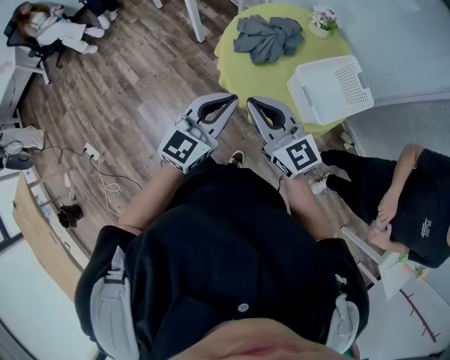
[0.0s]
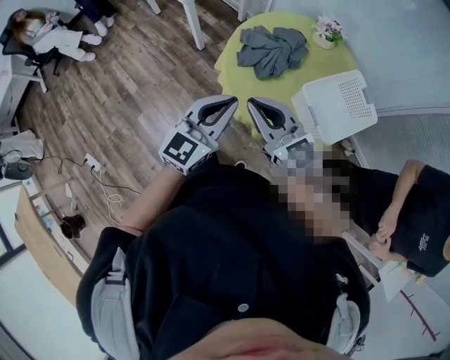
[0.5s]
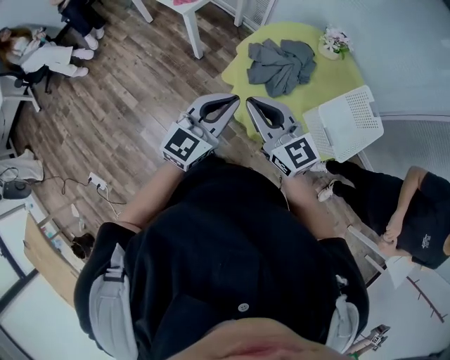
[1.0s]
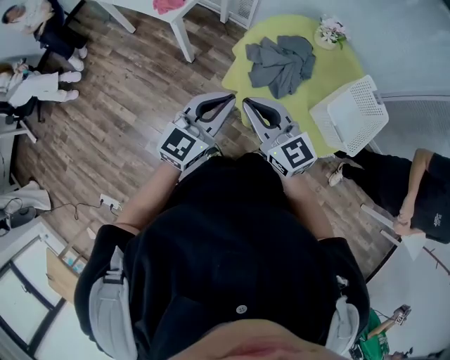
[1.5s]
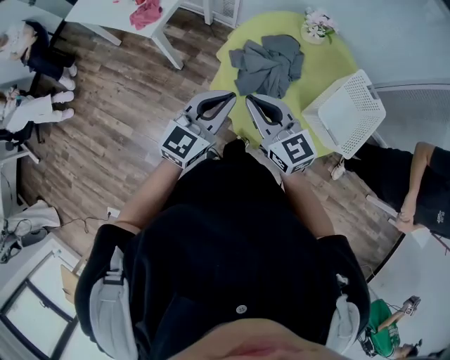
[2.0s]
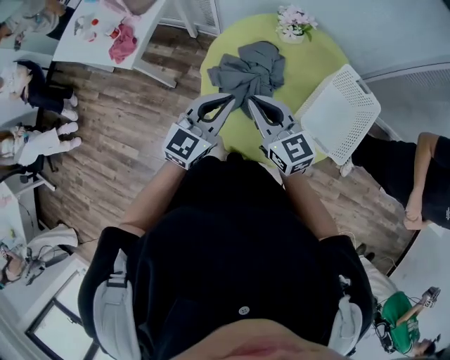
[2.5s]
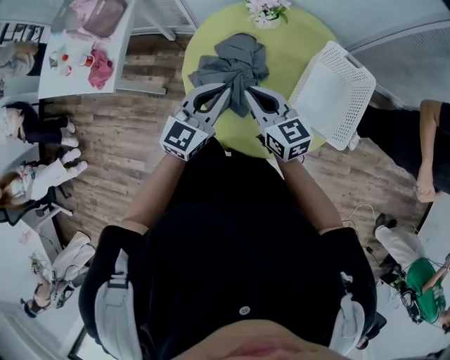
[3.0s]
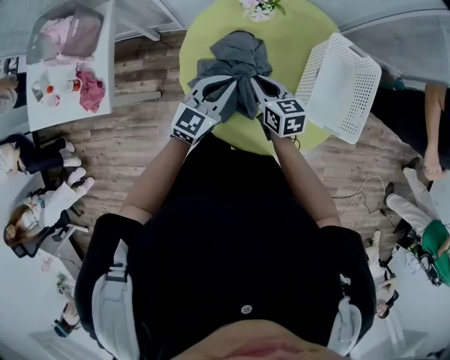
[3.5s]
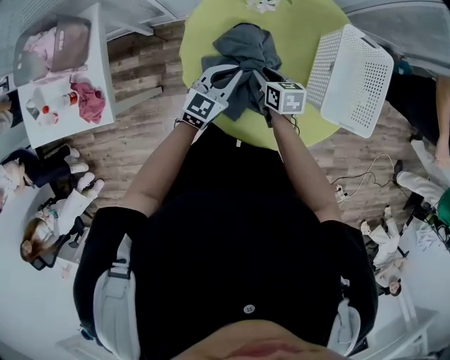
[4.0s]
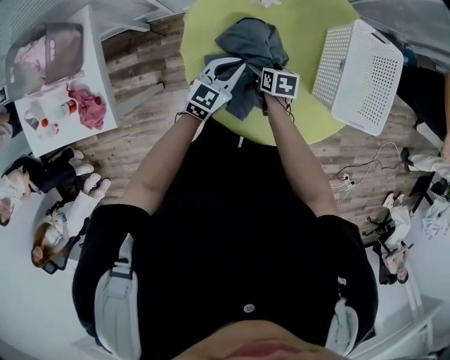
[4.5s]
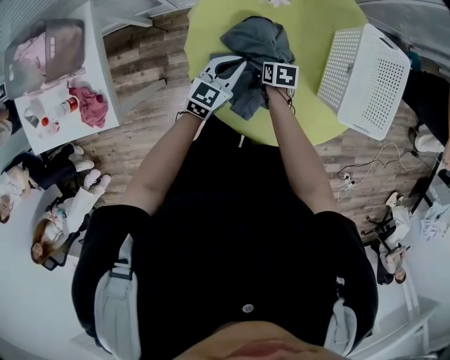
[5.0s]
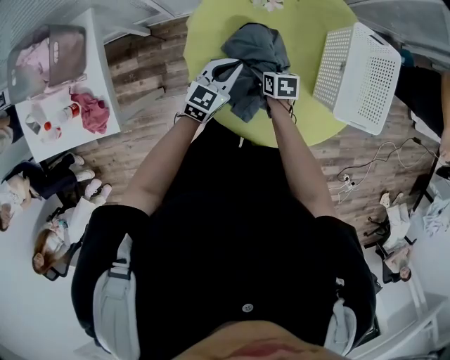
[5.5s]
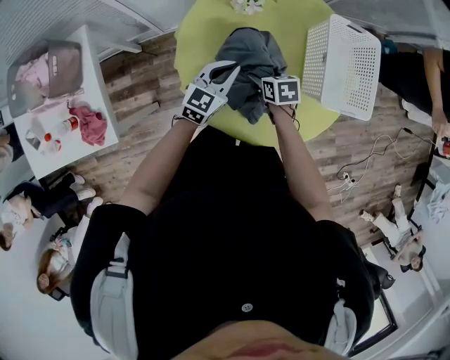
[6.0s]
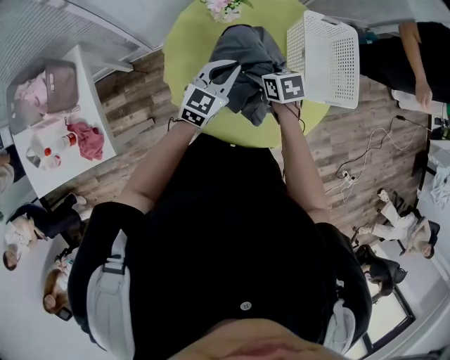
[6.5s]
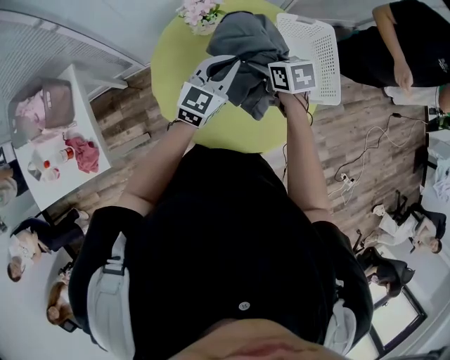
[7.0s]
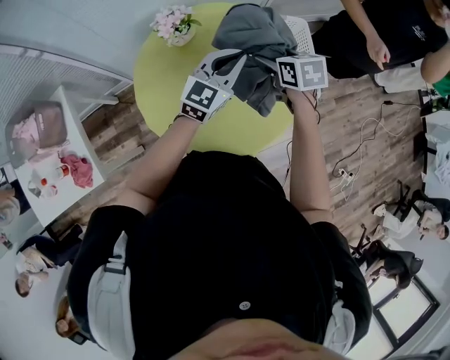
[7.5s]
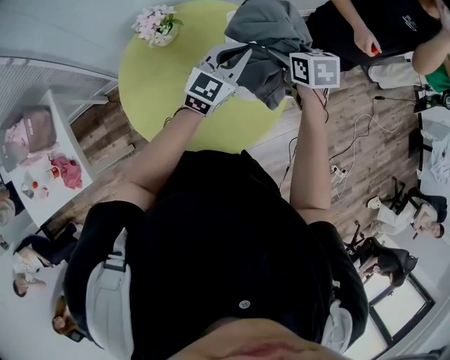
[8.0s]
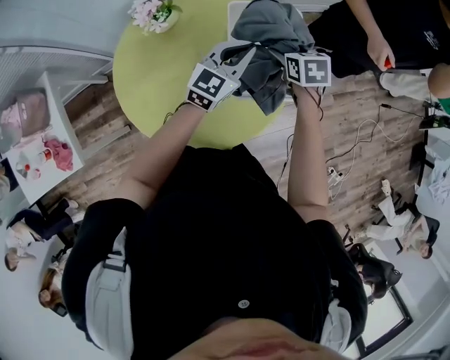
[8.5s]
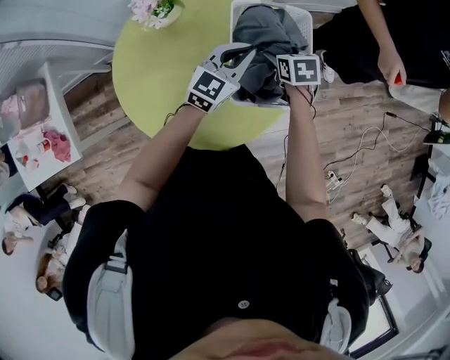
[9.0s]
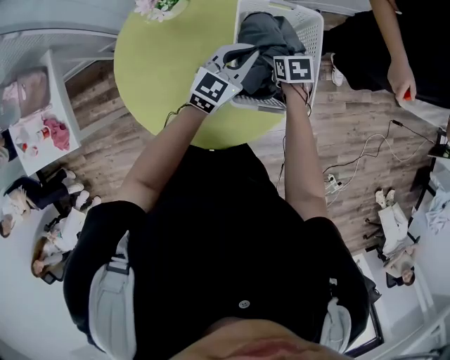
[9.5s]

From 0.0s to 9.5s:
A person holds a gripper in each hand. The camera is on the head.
From 0.0s to 2.0s: The grippers both shift forward and to the left by about 30 cm. The right gripper rotates about 20 degrees. The left gripper changes its angle by approximately 20 degrees.
From 2.0s to 4.0s: The left gripper ends up approximately 35 cm from where it was, and rotates approximately 30 degrees, while the right gripper shifts by some 40 cm, and tips its fingers downward by approximately 40 degrees.
From 4.0s to 5.5s: The right gripper goes roughly 10 cm downward, and opens up. Meanwhile the left gripper ends up approximately 5 cm from where it was.
From 5.5s to 7.5s: The right gripper travels upward and to the right by some 35 cm, while the left gripper travels to the right and upward by about 30 cm, and changes its angle by about 20 degrees.
From 7.5s to 9.5s: The left gripper travels downward, to the right and forward by roughly 20 cm. Meanwhile the right gripper shifts roughly 25 cm downward and to the right.

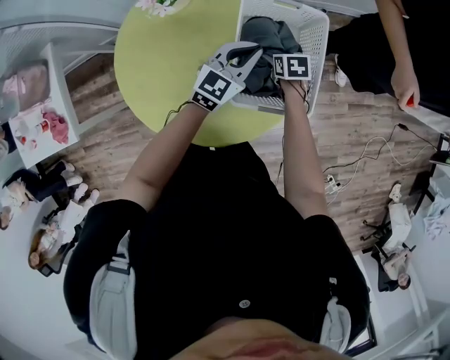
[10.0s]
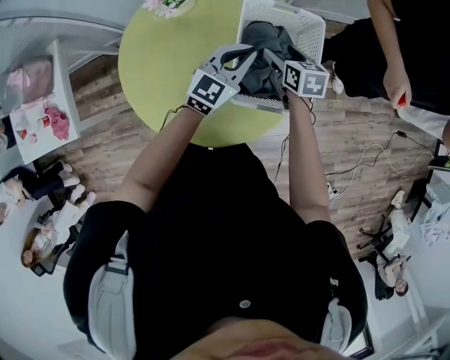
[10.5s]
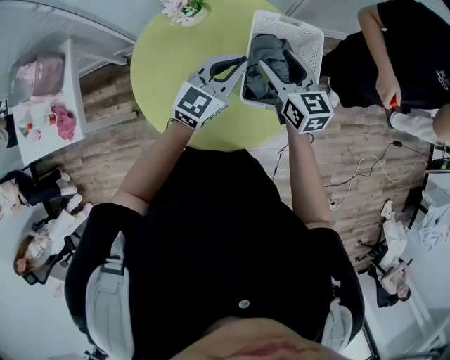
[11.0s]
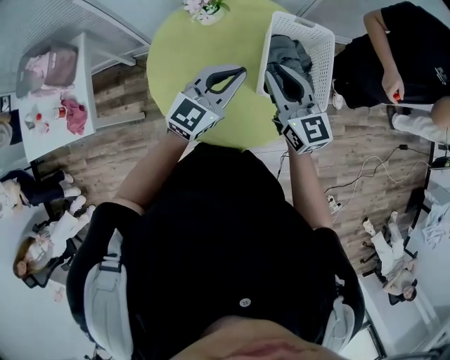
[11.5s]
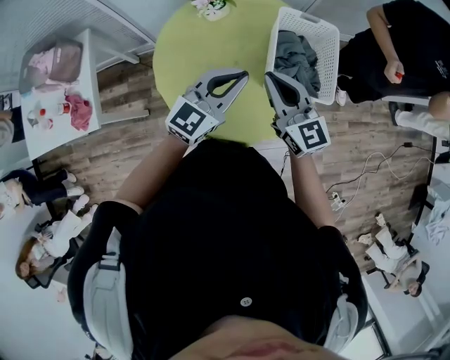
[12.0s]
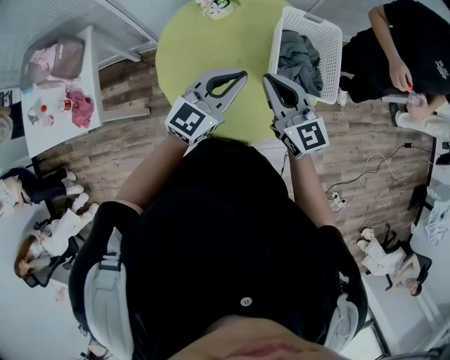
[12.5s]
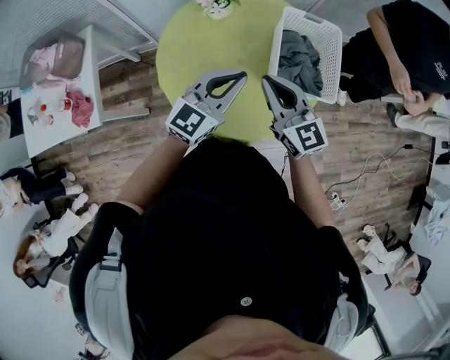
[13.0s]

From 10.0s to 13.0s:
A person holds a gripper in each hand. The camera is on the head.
From 10.0s to 11.5s: The right gripper travels upward, backward and to the left by roughly 40 cm, angles its fingers upward, by roughly 60 degrees, and closes; the left gripper shifts approximately 25 cm upward, backward and to the left.
From 11.5s to 13.0s: The left gripper shifts roughly 5 cm backward, while the right gripper shifts about 10 cm backward and to the left.

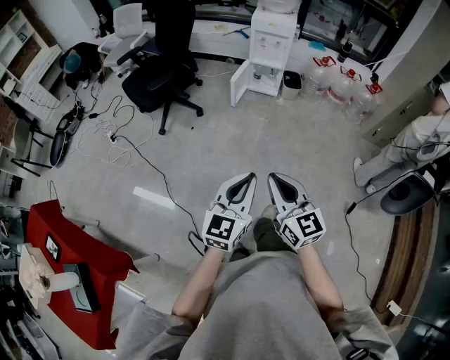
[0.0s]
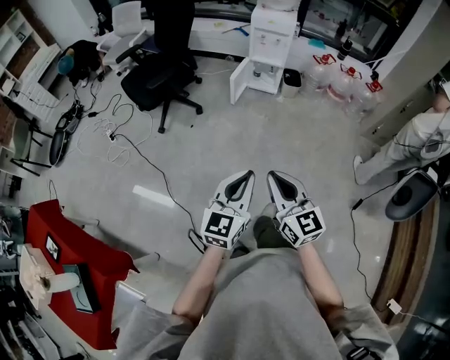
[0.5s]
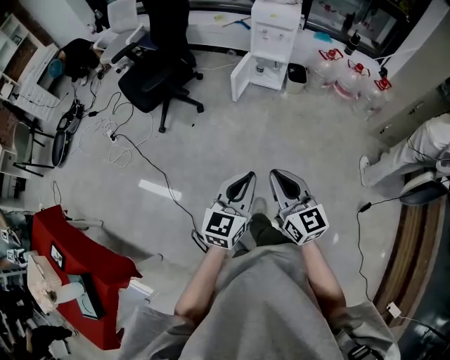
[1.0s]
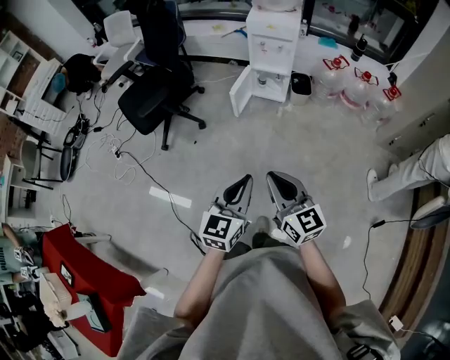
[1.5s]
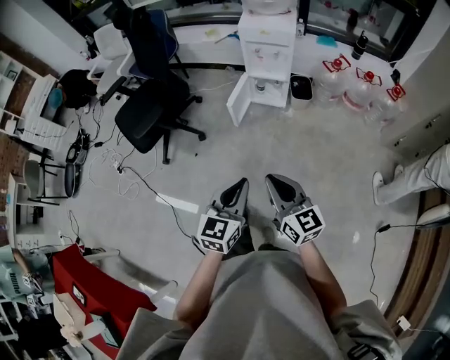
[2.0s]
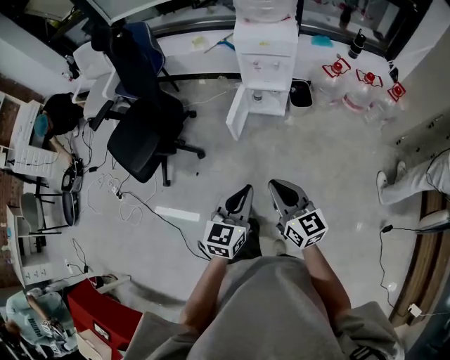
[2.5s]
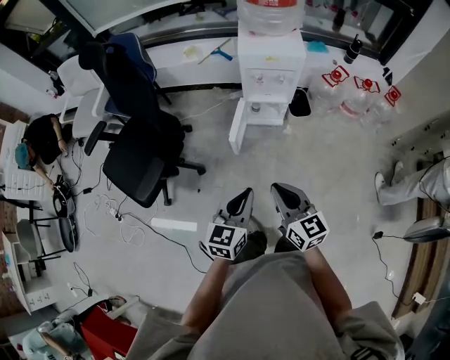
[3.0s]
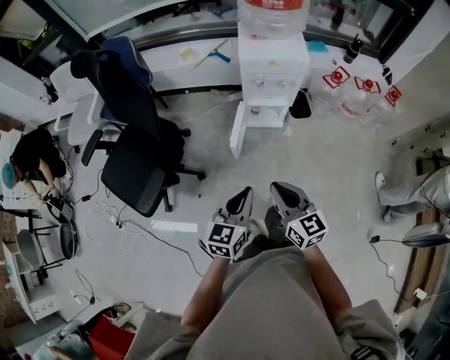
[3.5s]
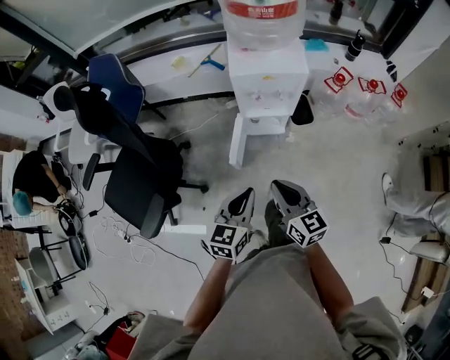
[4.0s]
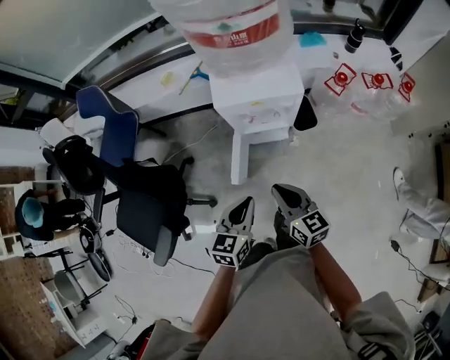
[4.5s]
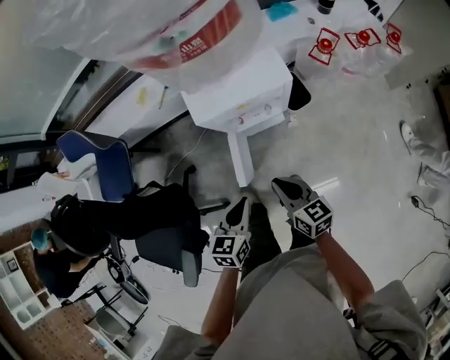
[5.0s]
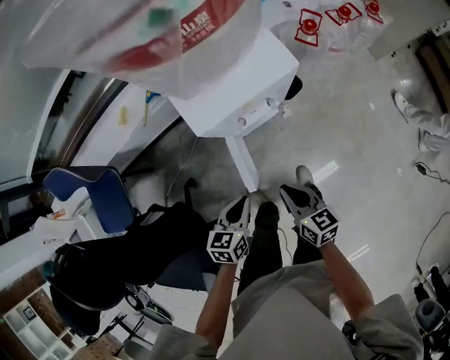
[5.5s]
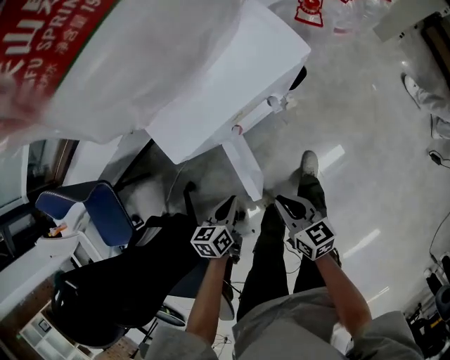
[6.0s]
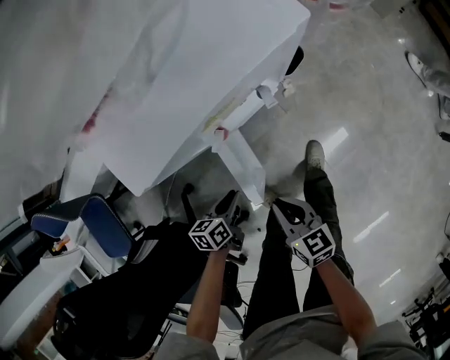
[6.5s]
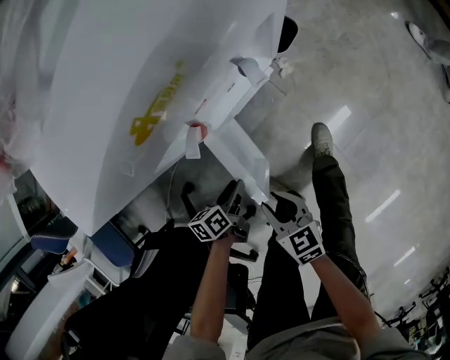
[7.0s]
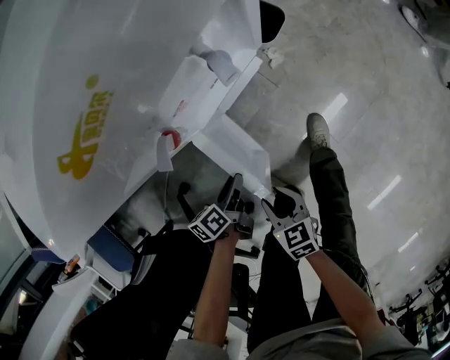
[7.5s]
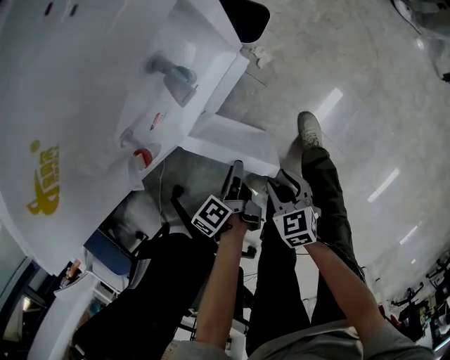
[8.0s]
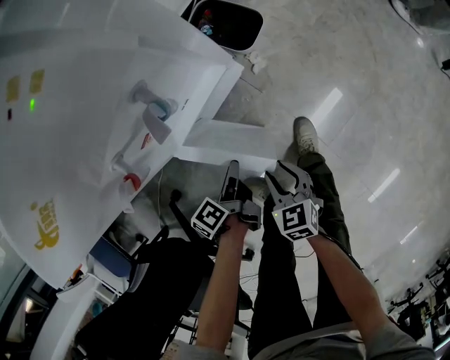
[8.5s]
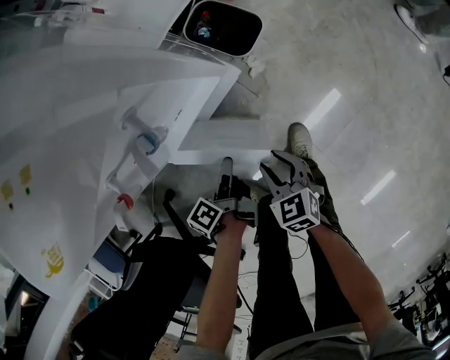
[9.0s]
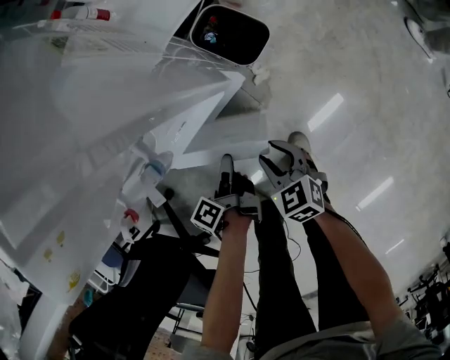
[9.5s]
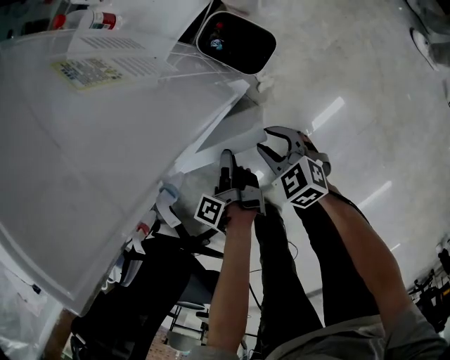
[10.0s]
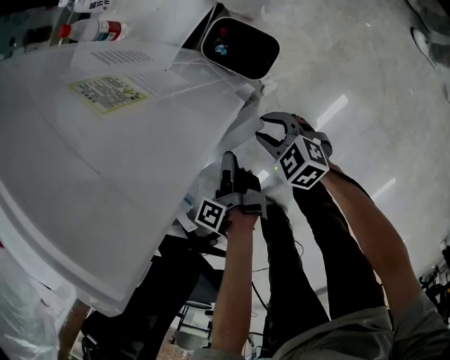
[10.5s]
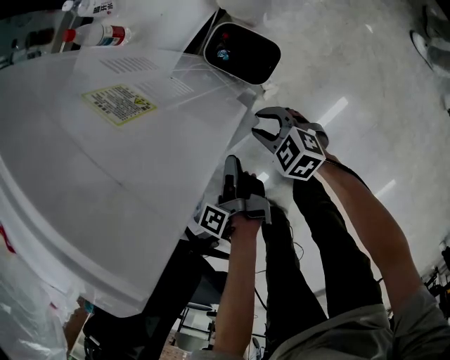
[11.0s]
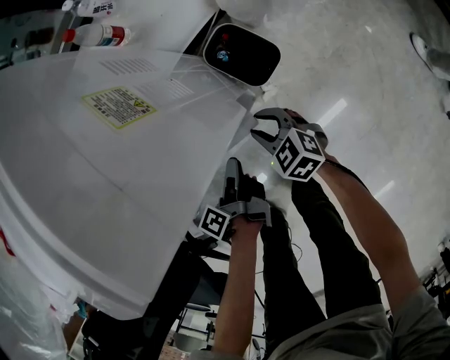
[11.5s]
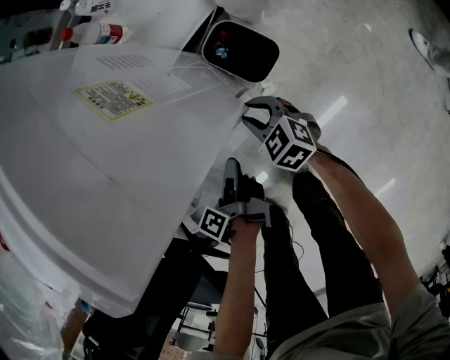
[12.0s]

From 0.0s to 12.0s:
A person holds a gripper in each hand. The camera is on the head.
From 0.0s to 2.0s: Both grippers move forward, approximately 30 cm.
From 2.0s to 4.0s: Both grippers move forward, roughly 40 cm.
From 4.0s to 6.0s: The two grippers go some 30 cm downward. The left gripper turns by some 40 degrees. Meanwhile the right gripper turns by approximately 40 degrees.
From 6.0s to 8.0s: Both grippers move downward, roughly 20 cm. The right gripper swivels roughly 30 degrees, and opens, while the left gripper swivels some 40 degrees, and opens.
From 8.0s to 10.0s: The left gripper ends up some 15 cm from where it was, and swivels roughly 40 degrees. The right gripper shifts by roughly 25 cm, and swivels some 30 degrees.
From 10.0s to 12.0s: The right gripper heads forward, covering about 10 cm; the left gripper is displaced upward by about 5 cm.

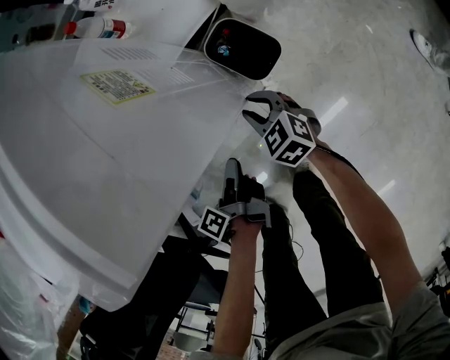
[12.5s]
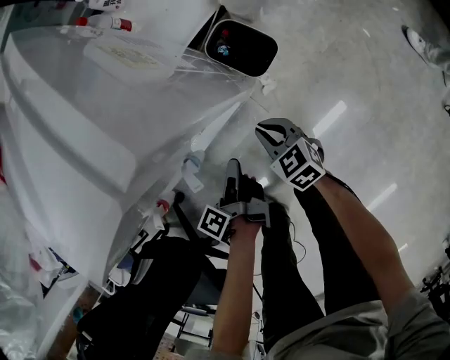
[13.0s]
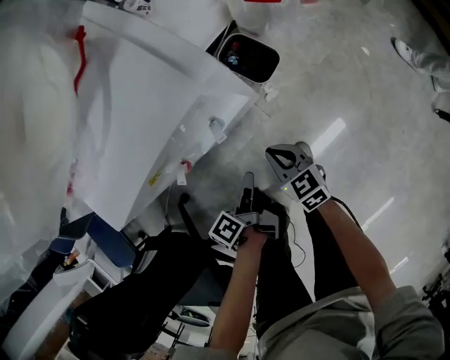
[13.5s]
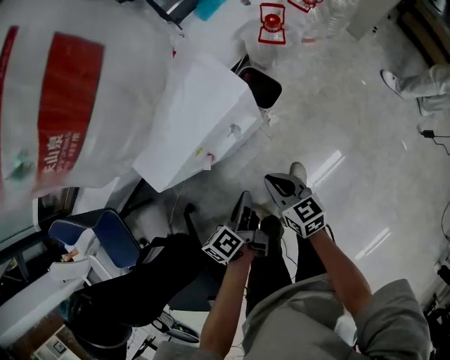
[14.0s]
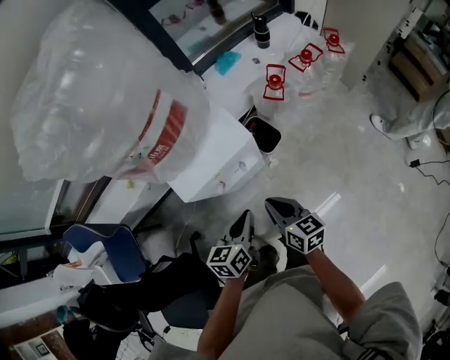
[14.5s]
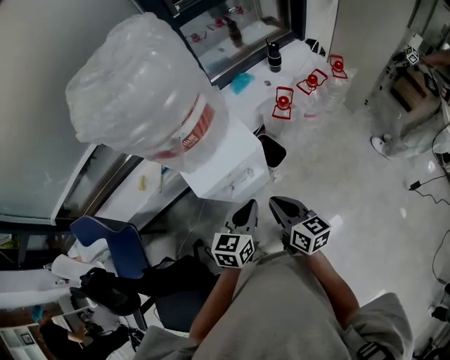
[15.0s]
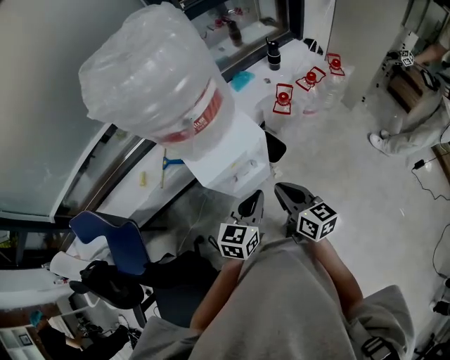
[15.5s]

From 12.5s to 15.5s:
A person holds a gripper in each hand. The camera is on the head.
From 12.5s to 14.0s: The grippers both shift upward and backward by roughly 30 cm. The right gripper turns by about 40 degrees, and closes its fingers; the left gripper turns by about 30 degrees, and closes up.
From 14.0s to 15.5s: Both grippers travel together upward, about 25 cm. The left gripper twists some 60 degrees clockwise, seen from behind.
